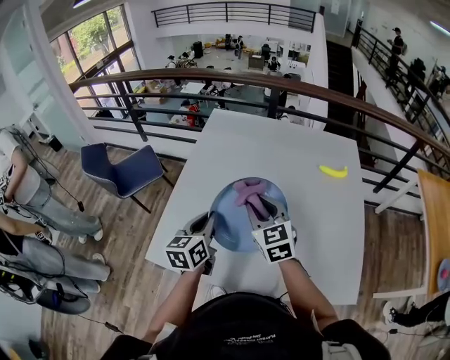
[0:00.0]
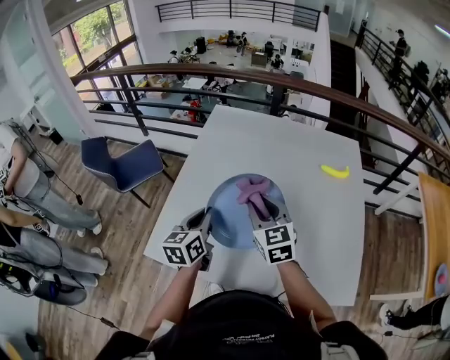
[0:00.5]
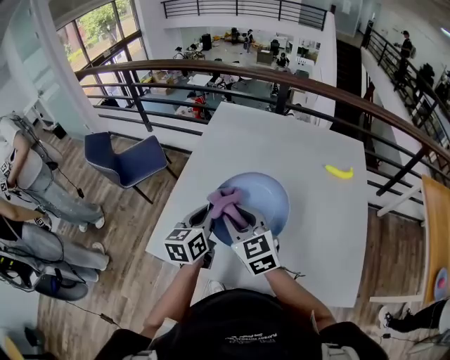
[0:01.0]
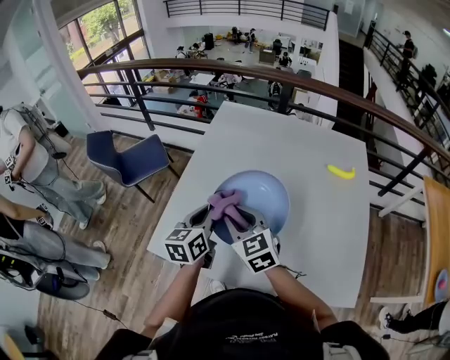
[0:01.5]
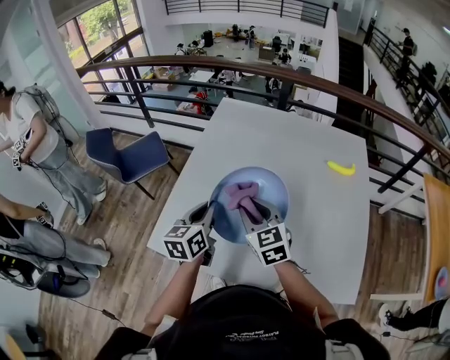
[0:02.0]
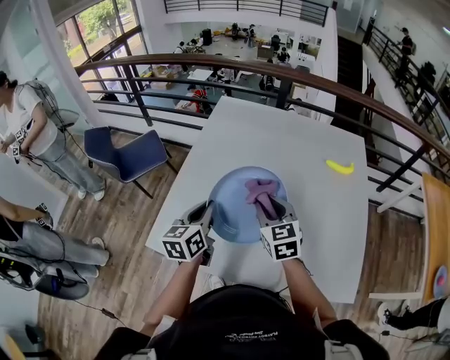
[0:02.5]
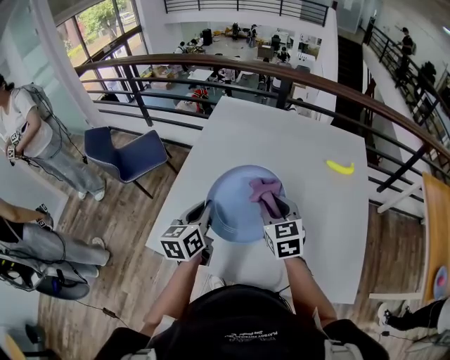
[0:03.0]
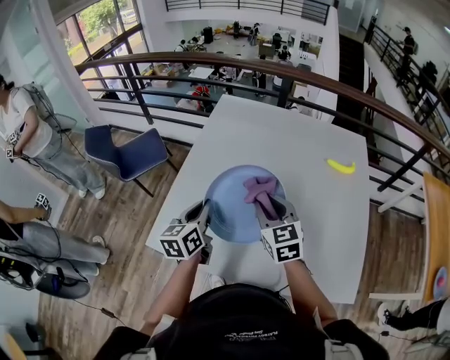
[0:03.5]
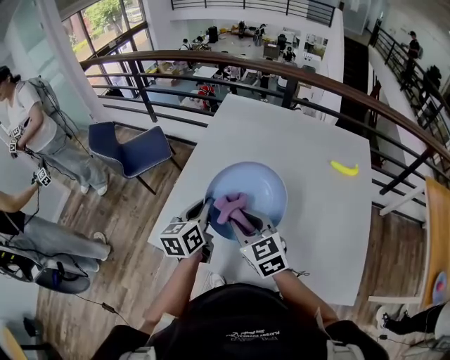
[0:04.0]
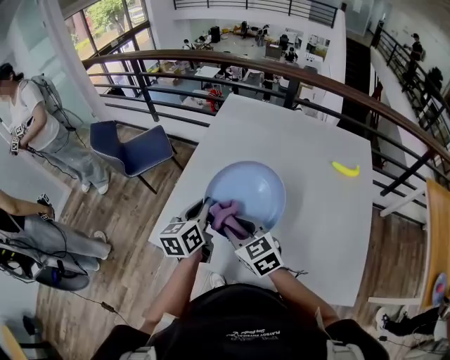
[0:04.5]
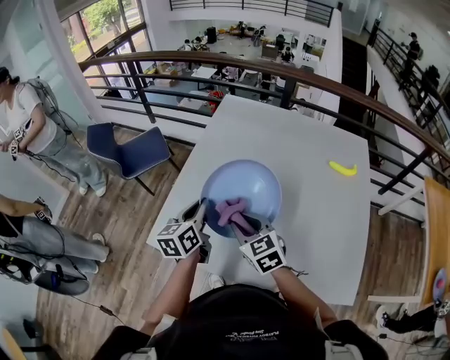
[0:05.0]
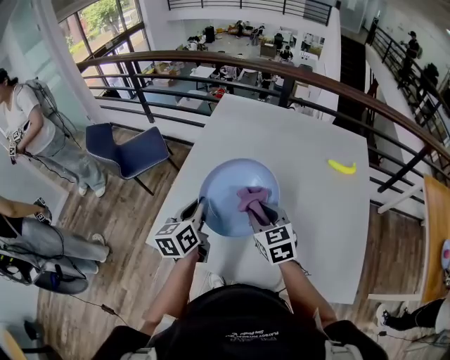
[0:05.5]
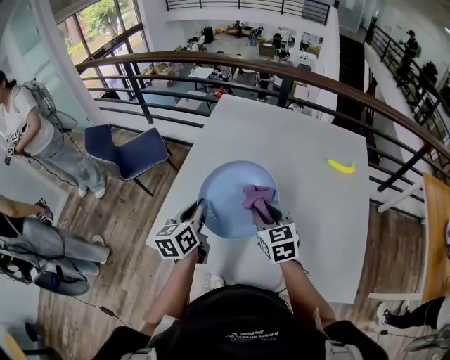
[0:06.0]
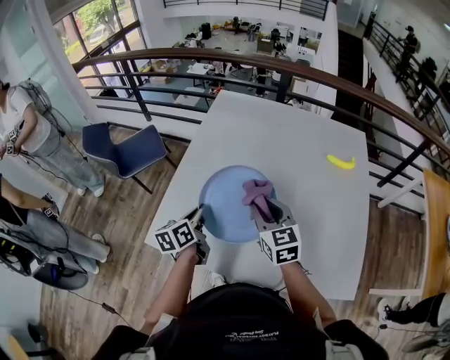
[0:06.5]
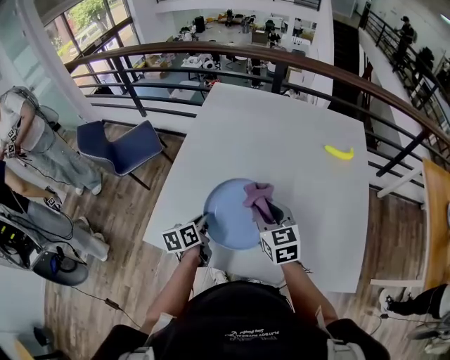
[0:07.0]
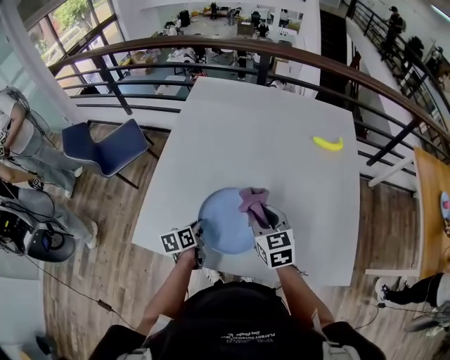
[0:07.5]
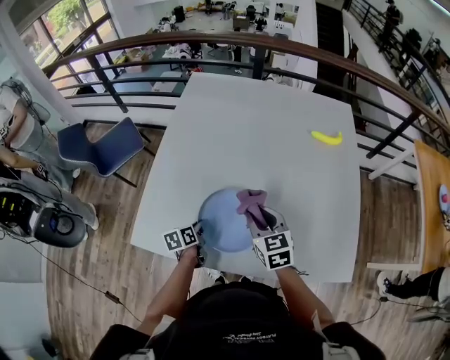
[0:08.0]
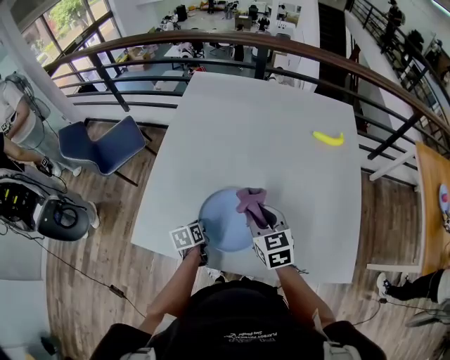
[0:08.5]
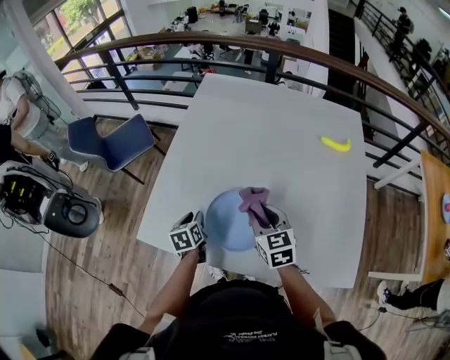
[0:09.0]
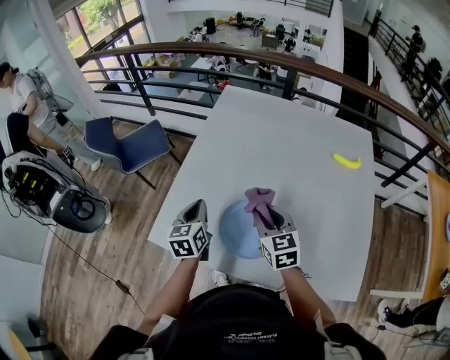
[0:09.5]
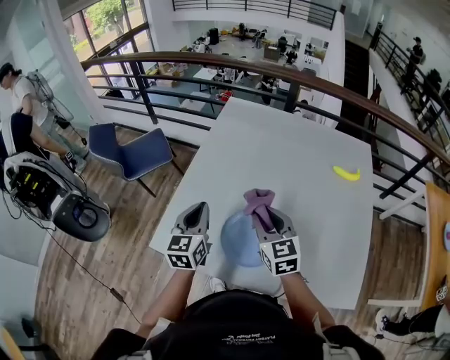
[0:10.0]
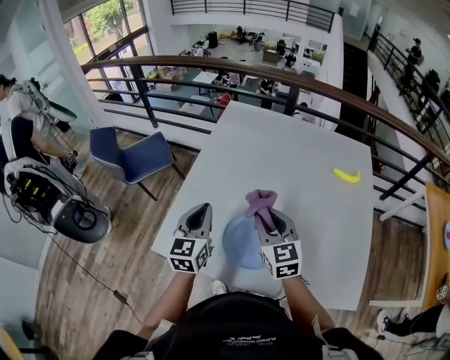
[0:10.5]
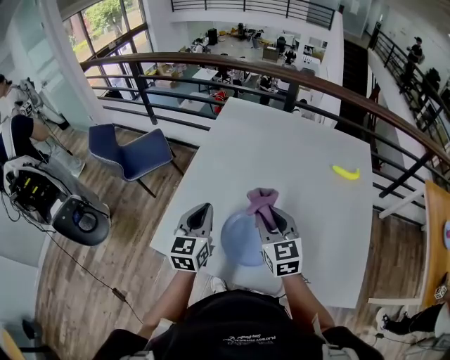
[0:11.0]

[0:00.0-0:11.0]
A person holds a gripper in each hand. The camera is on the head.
0:02.0 to 0:03.5: The right gripper shifts by approximately 5 cm.
0:03.5 to 0:05.5: The right gripper moves about 10 cm to the left and comes back.
0:05.5 to 0:07.5: The left gripper heads downward, covering roughly 20 cm, and changes its angle by some 30 degrees. The right gripper shifts approximately 5 cm to the right.
0:07.5 to 0:09.0: The left gripper rotates roughly 20 degrees, and opens.
0:09.0 to 0:11.0: The right gripper heads upward, covering approximately 10 cm. The left gripper goes approximately 20 cm upward, points its fingers about 30 degrees further upward, and closes its fingers.

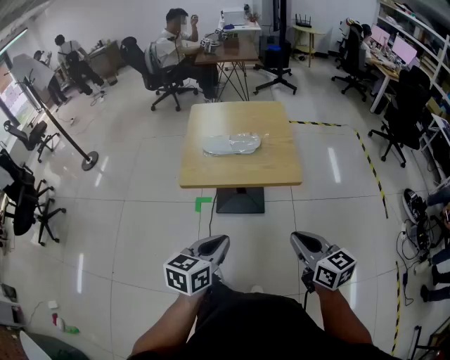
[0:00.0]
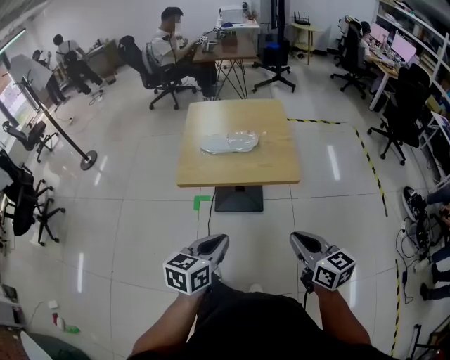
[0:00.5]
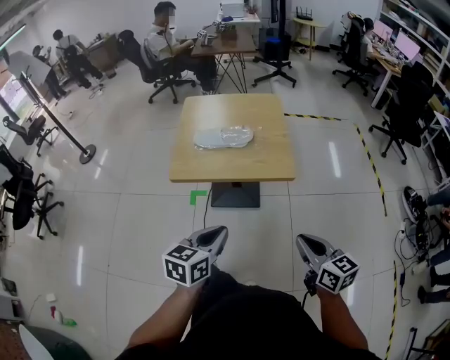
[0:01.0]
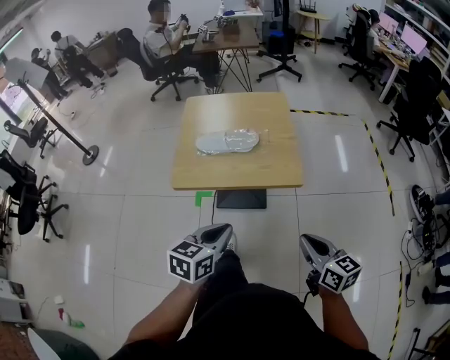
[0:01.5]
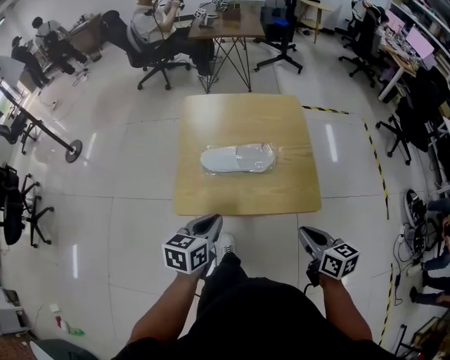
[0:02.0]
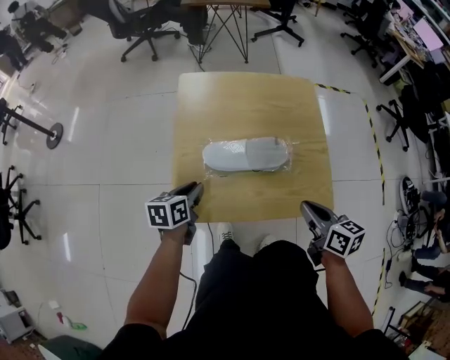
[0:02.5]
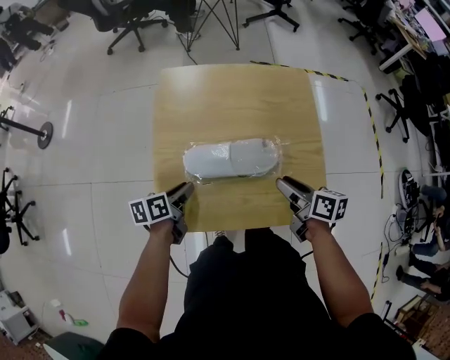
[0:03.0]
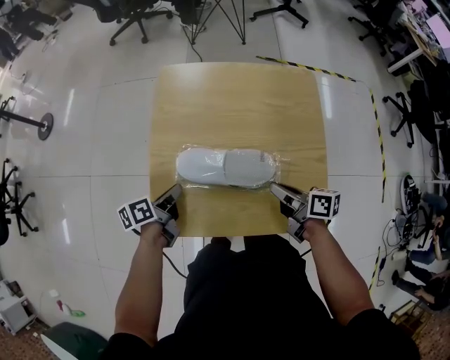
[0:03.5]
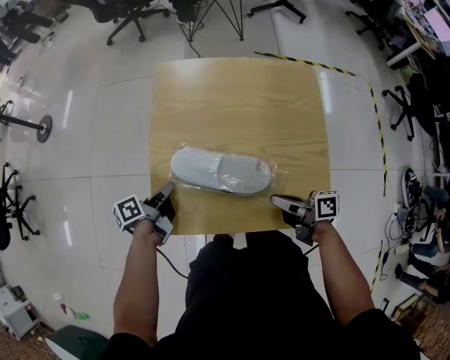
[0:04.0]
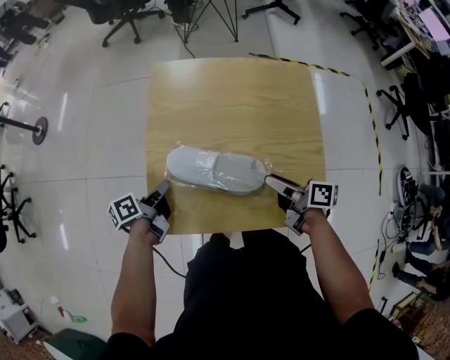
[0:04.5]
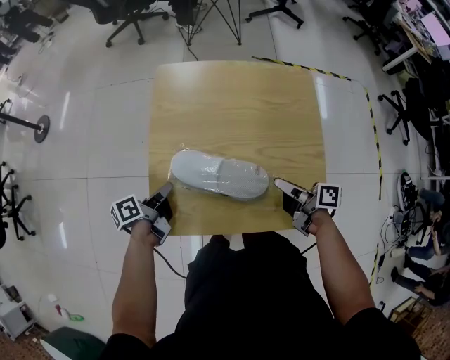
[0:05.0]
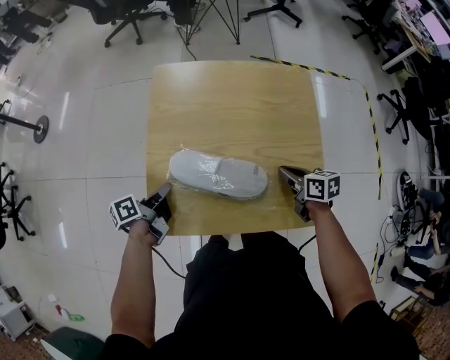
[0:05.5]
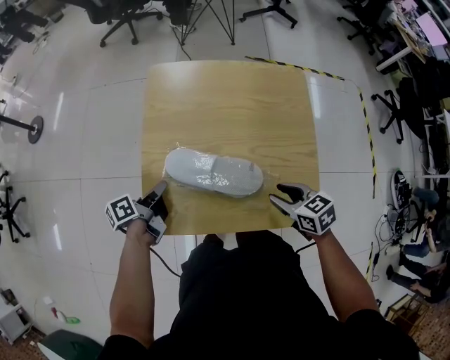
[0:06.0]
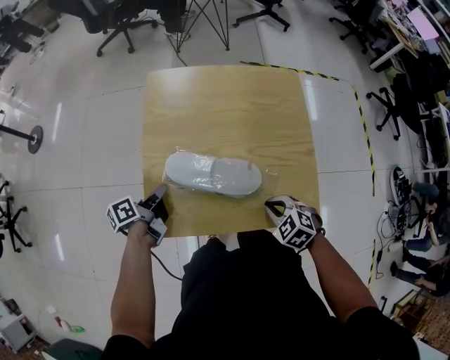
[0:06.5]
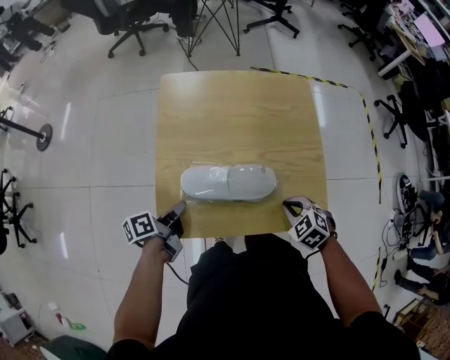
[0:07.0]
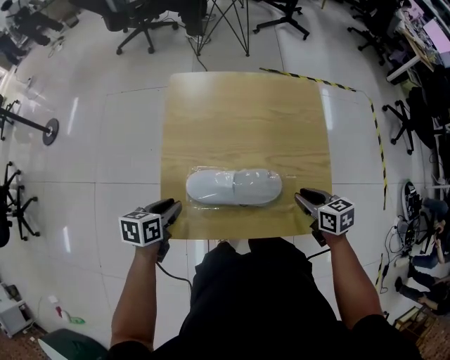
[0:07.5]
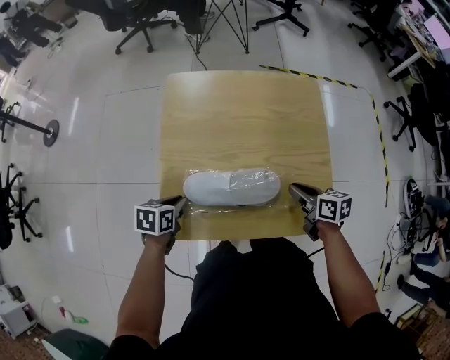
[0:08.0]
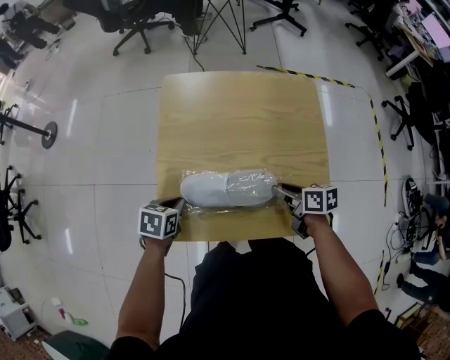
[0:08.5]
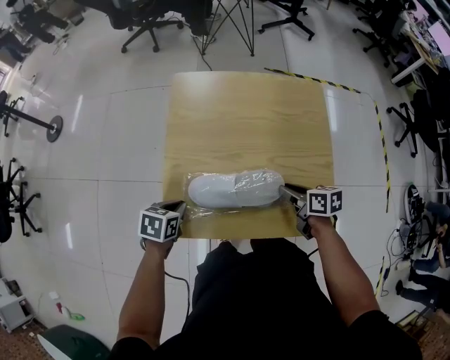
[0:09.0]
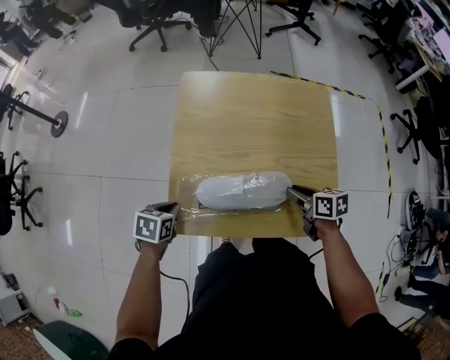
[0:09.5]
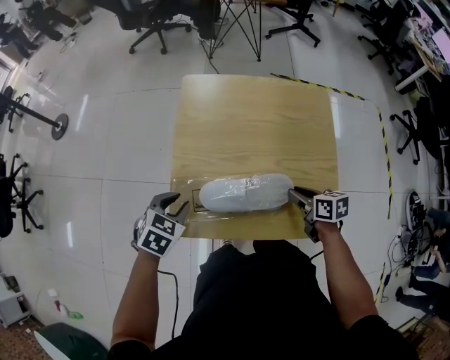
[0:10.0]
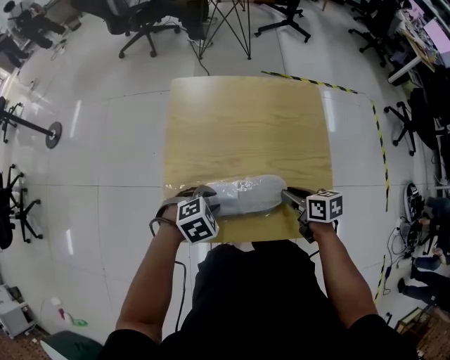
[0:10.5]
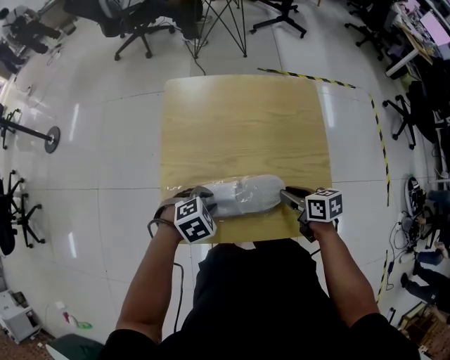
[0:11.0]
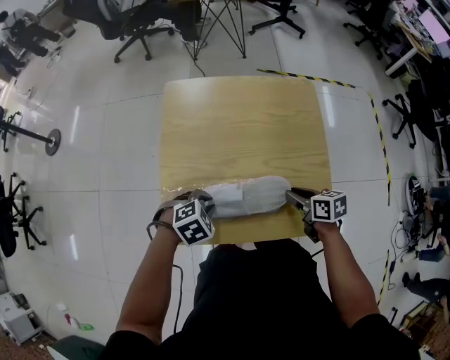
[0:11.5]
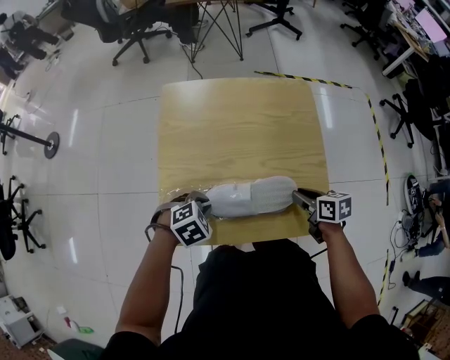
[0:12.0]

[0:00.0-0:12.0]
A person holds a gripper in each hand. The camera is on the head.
0:00.0 to 0:02.0: The right gripper is displaced forward and downward by some 25 cm, while the left gripper goes approximately 25 cm forward.
0:02.0 to 0:04.0: The left gripper heads forward, downward and to the left, covering approximately 30 cm, rolls counterclockwise, seen from behind, by roughly 60 degrees, and opens, then closes once more. The right gripper travels forward and downward by roughly 25 cm, changes its angle by approximately 50 degrees, and opens, then closes once more.
0:04.0 to 0:06.0: The right gripper travels forward and back again, some 10 cm each way, points its fingers about 30 degrees further downward, and opens its fingers.
0:06.0 to 0:08.0: The left gripper twists some 50 degrees clockwise, seen from behind. Meanwhile the right gripper moves roughly 5 cm, rotates some 30 degrees, and closes its fingers.
0:08.0 to 0:10.0: The left gripper is displaced upward by roughly 5 cm, and changes its angle by about 30 degrees.
0:10.0 to 0:12.0: The right gripper shifts about 5 cm to the right; the left gripper travels to the right and downward by approximately 10 cm, and changes its angle by some 40 degrees.

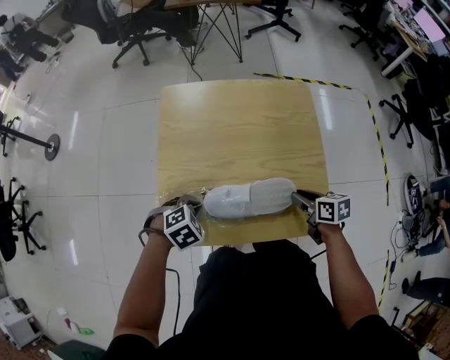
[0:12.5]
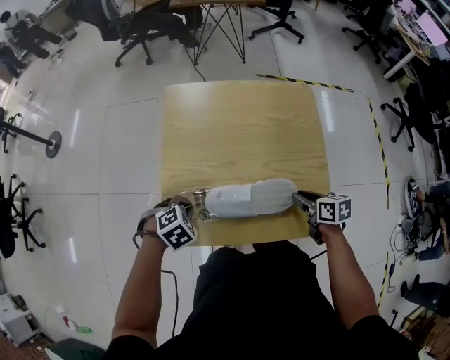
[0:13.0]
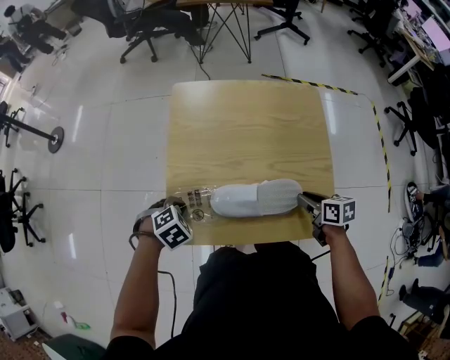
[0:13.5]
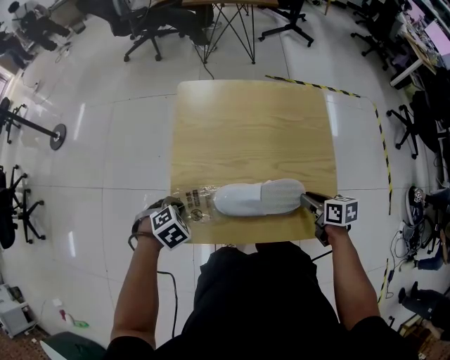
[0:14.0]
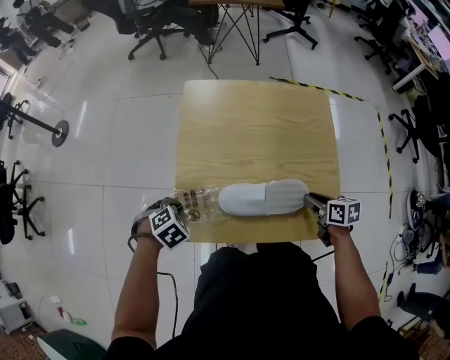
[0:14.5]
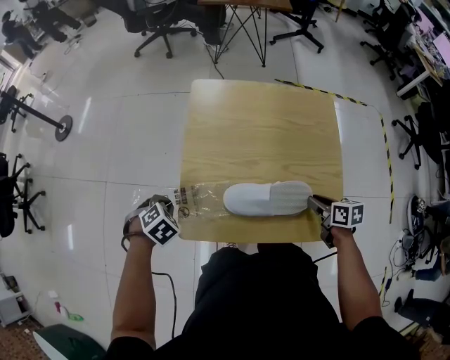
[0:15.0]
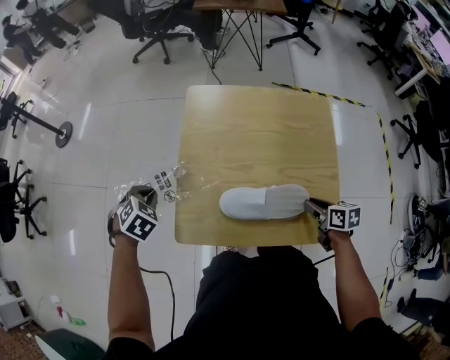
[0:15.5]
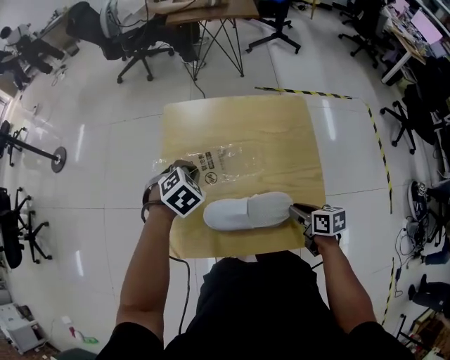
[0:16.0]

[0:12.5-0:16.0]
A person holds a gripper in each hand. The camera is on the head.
0:12.5 to 0:14.5: The left gripper moves roughly 10 cm.
0:14.5 to 0:16.0: The left gripper changes place by some 25 cm.
